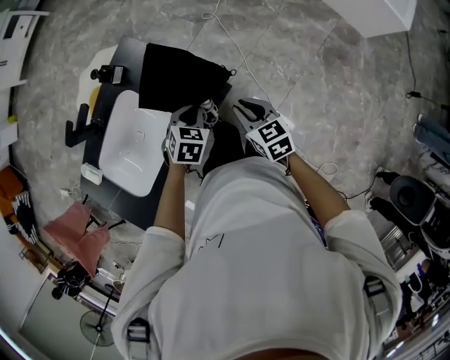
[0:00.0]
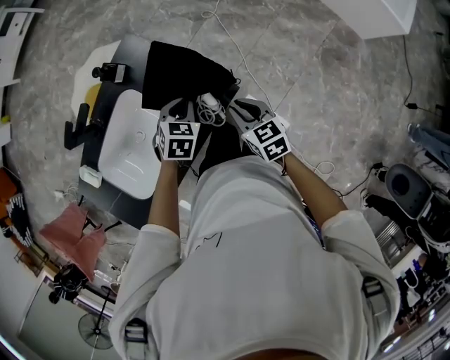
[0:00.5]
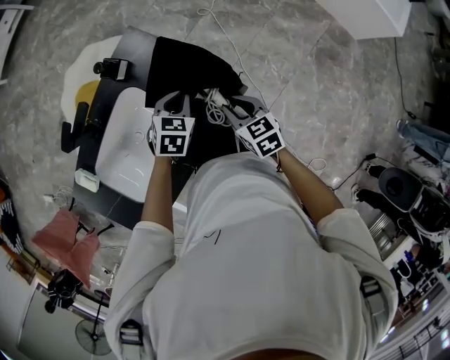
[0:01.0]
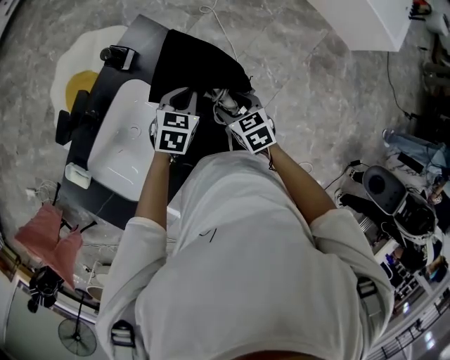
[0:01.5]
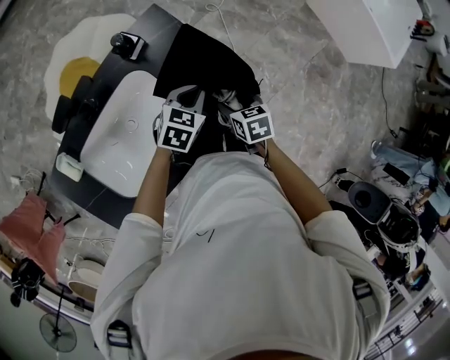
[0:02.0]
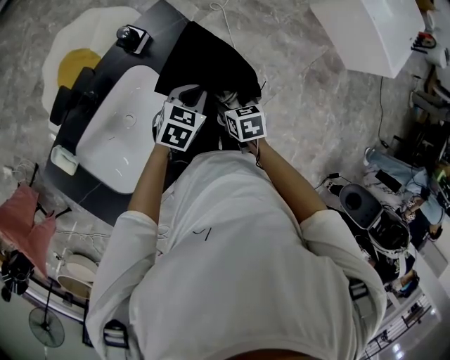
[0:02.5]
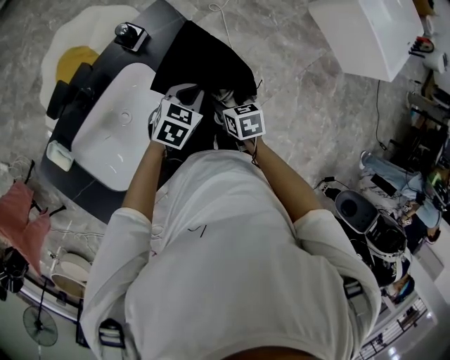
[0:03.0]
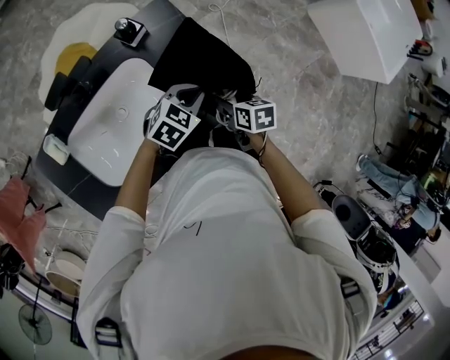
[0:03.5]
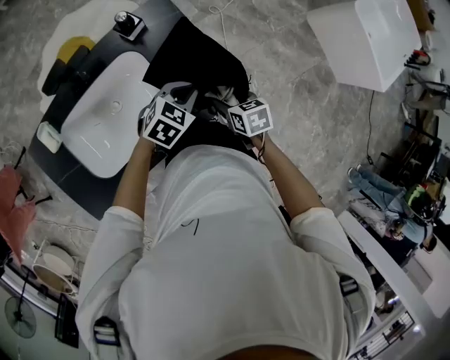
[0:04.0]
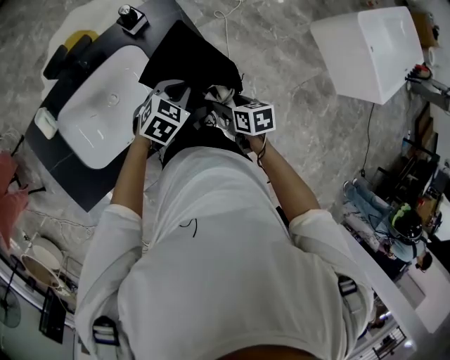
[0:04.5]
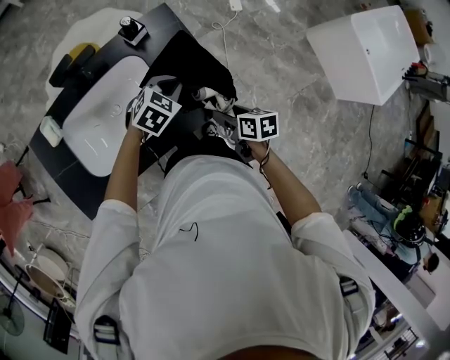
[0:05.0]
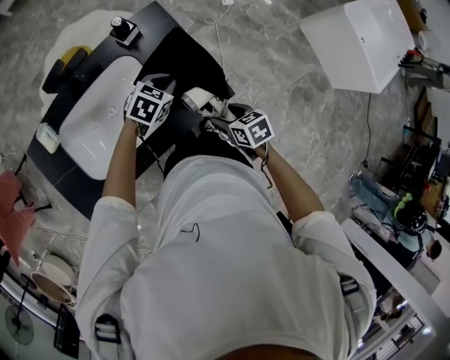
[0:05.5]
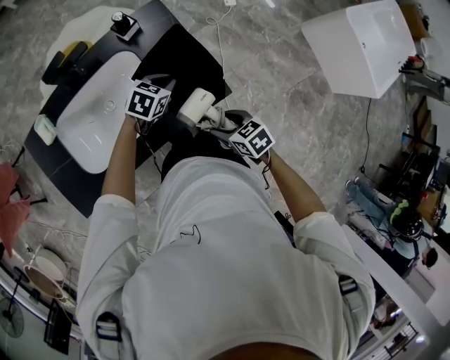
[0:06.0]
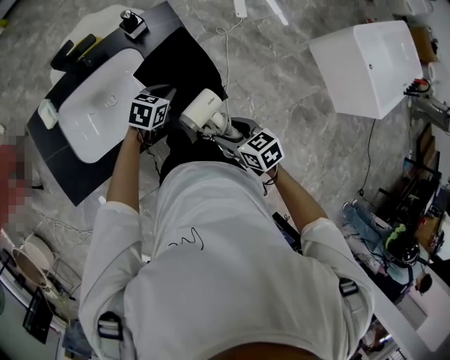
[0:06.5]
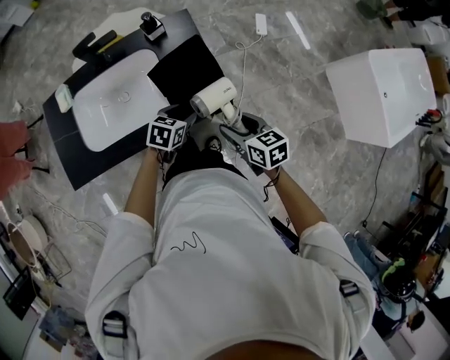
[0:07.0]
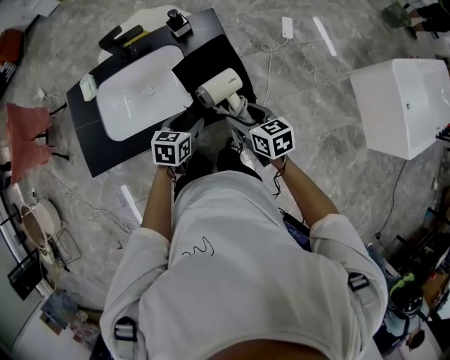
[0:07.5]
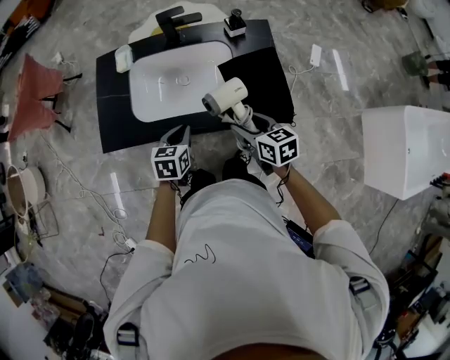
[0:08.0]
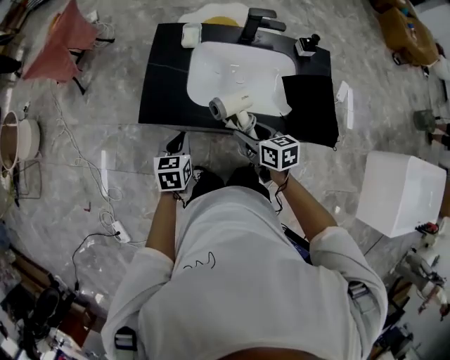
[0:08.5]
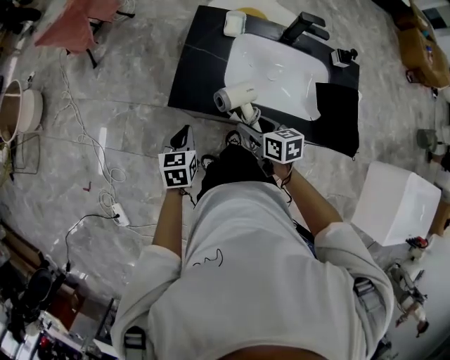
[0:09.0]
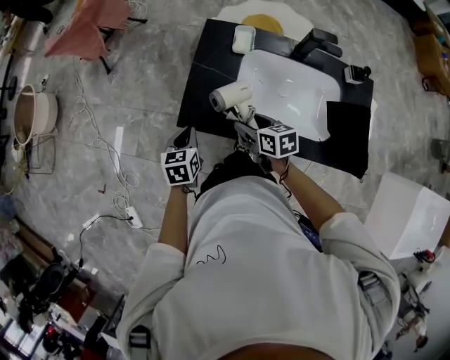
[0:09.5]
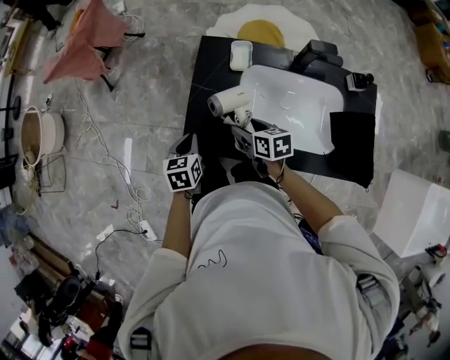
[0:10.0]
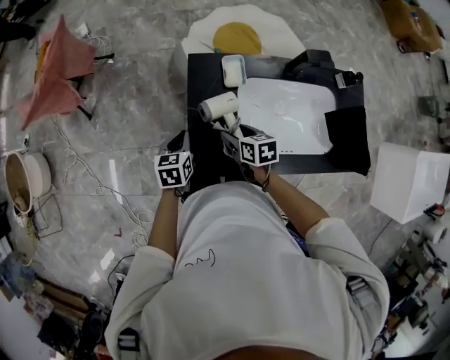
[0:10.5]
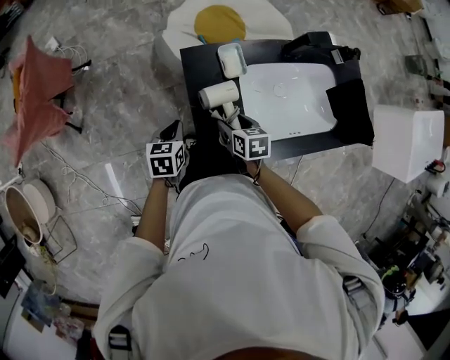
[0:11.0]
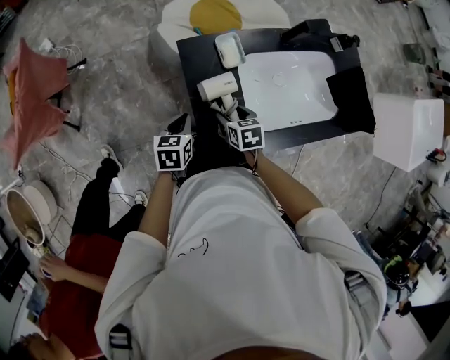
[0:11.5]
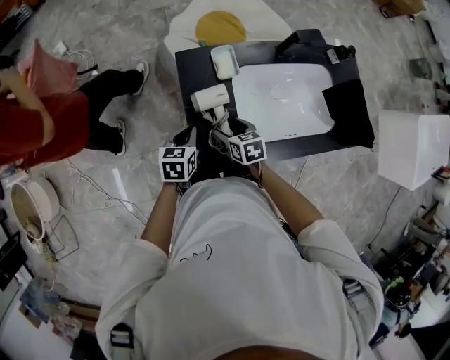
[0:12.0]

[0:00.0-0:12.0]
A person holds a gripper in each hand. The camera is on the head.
0:00.0 to 0:02.0: The right gripper travels to the left, downward and forward by some 15 cm, turns by about 20 degrees, and opens. Meanwhile the left gripper is displaced to the left and forward by approximately 10 cm, and turns by about 20 degrees.
0:02.0 to 0:04.0: The left gripper changes place by approximately 5 cm.
0:04.0 to 0:06.0: The right gripper shifts about 10 cm backward, and changes its angle by roughly 20 degrees.
0:06.0 to 0:08.0: The right gripper shifts by approximately 15 cm, and swivels approximately 20 degrees. Meanwhile the left gripper shifts by approximately 30 cm, turns by roughly 60 degrees, and opens, then closes again.
0:08.0 to 0:10.0: The left gripper moves some 40 cm, and swivels roughly 20 degrees. Meanwhile the right gripper moves approximately 40 cm.
0:10.0 to 0:12.0: The left gripper turns by about 30 degrees. Meanwhile the right gripper changes place by approximately 10 cm, and changes its angle by roughly 20 degrees.

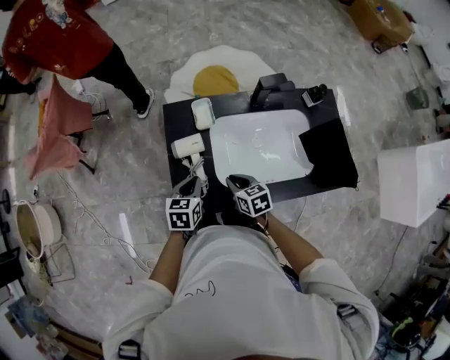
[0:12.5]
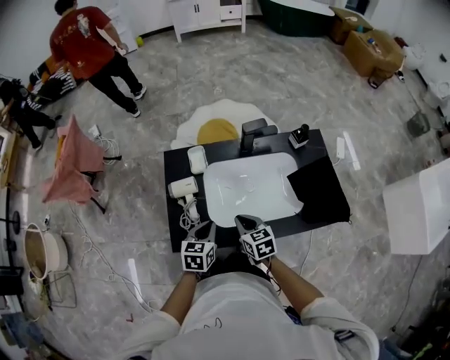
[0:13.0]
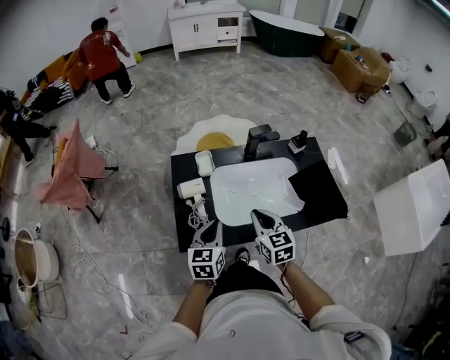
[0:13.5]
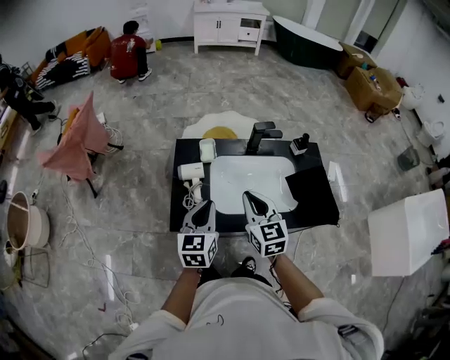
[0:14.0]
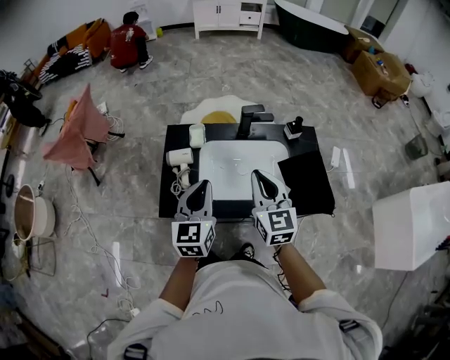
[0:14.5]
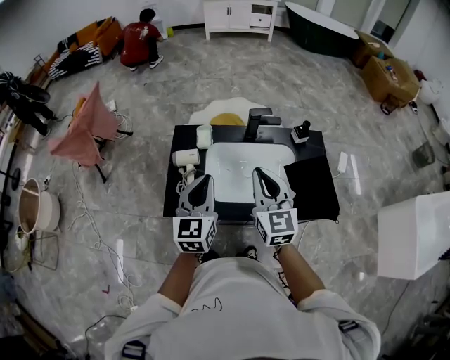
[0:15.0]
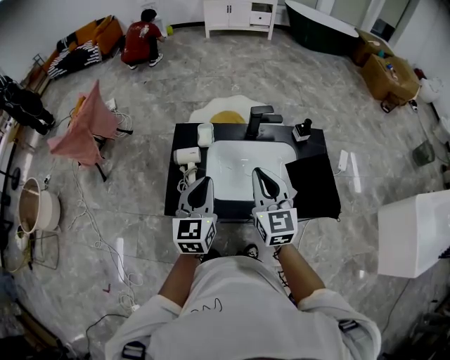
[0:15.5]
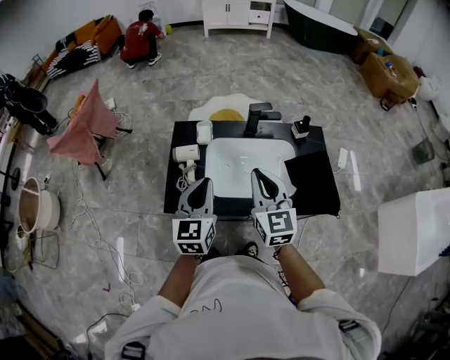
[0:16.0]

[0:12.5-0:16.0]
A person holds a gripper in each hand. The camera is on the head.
0:12.5 to 0:14.5: The grippers both shift upward and to the right by roughly 30 cm. The left gripper angles its fingers upward, by some 30 degrees, while the right gripper angles its fingers upward, by approximately 30 degrees.
0:14.5 to 0:16.0: There are only small adjustments of the grippers.

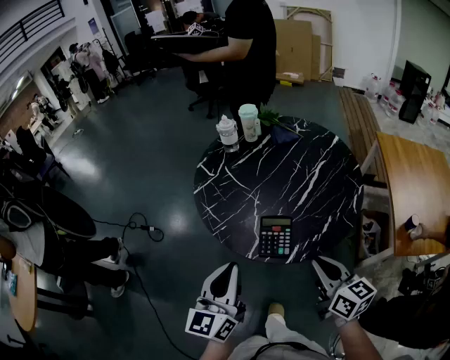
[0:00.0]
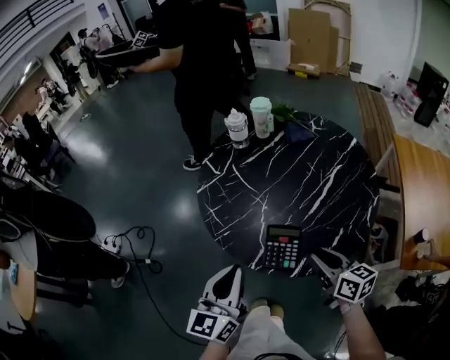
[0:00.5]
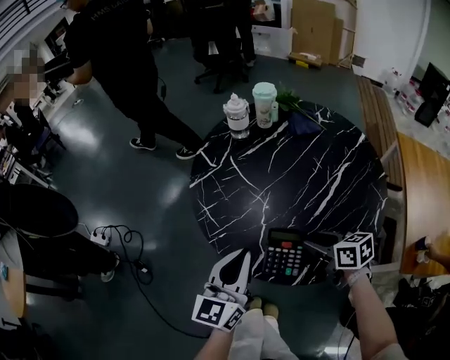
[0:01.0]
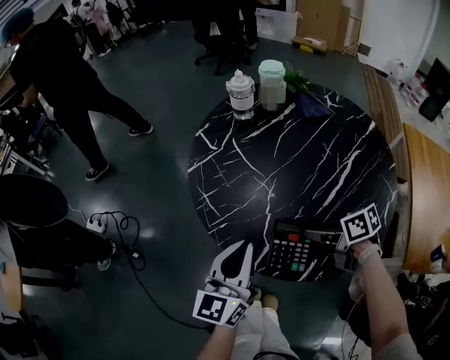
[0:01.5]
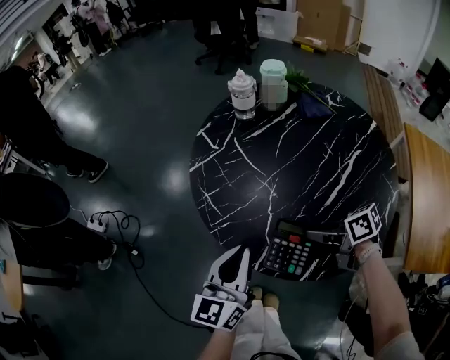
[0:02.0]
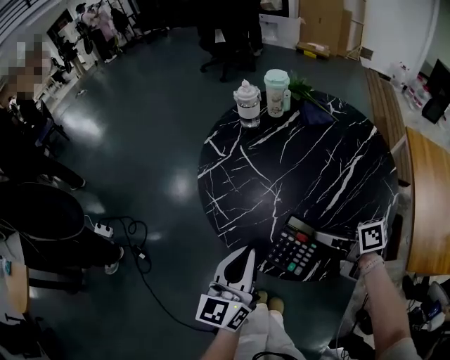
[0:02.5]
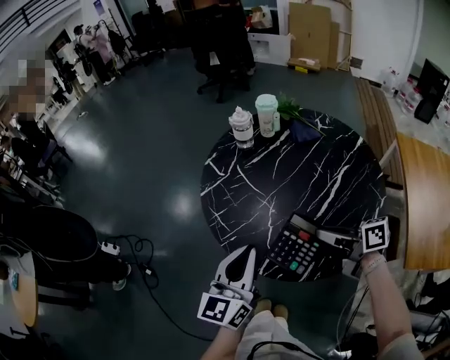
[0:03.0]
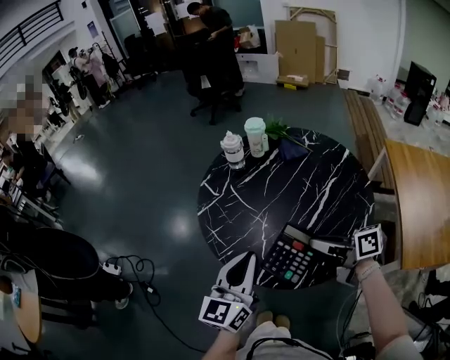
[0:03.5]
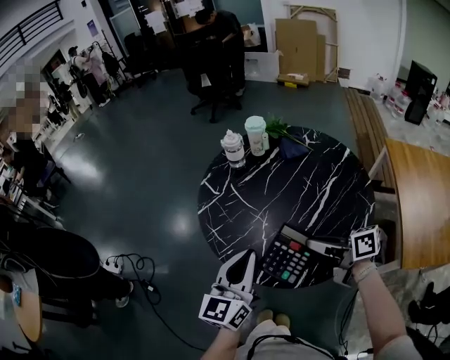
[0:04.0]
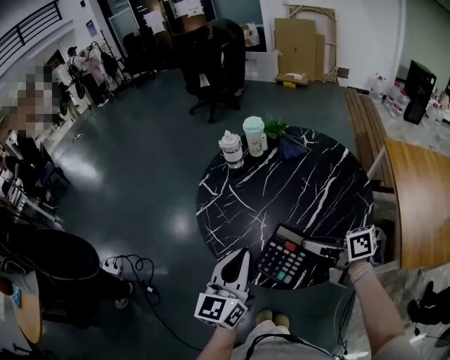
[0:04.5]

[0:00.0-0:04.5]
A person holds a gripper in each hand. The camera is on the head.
0:00.0 to 0:02.0: The left gripper ends up about 15 cm from where it was. The right gripper changes place by about 25 cm, turns by approximately 50 degrees, and opens, then closes once more.
0:02.0 to 0:04.5: The two grippers go some 15 cm upward. The right gripper changes its angle by some 20 degrees.

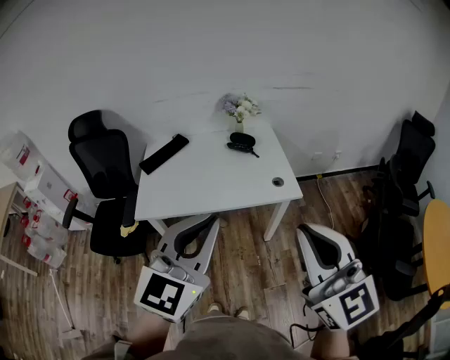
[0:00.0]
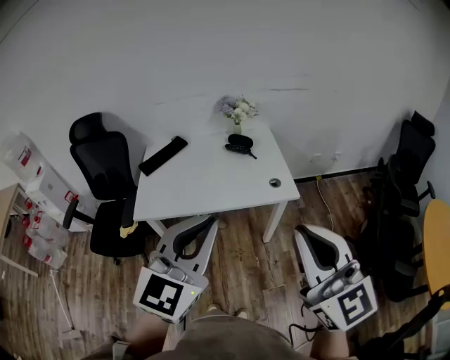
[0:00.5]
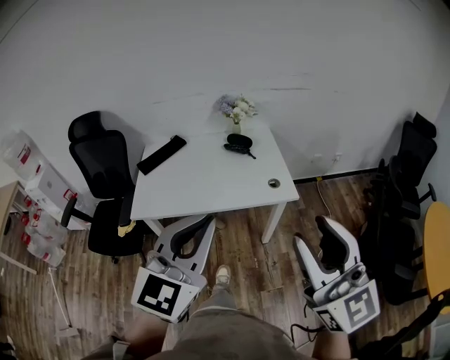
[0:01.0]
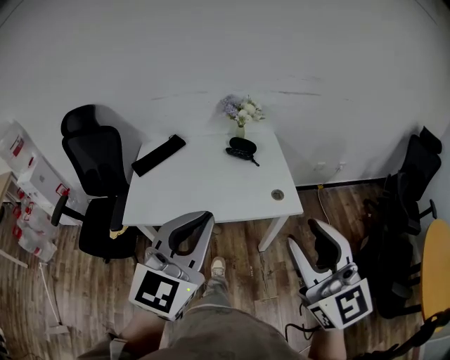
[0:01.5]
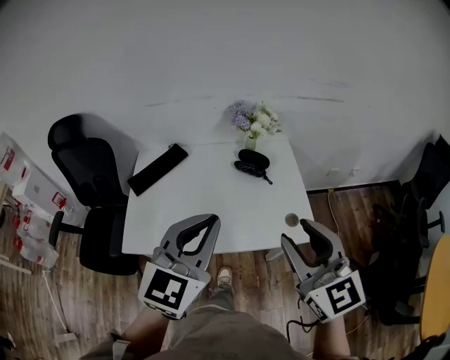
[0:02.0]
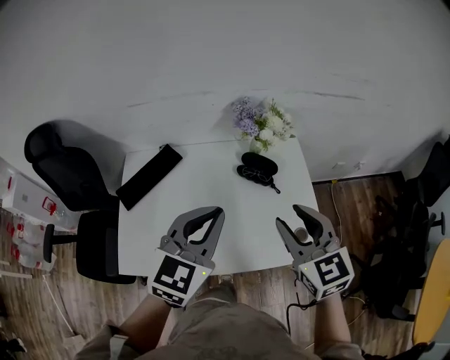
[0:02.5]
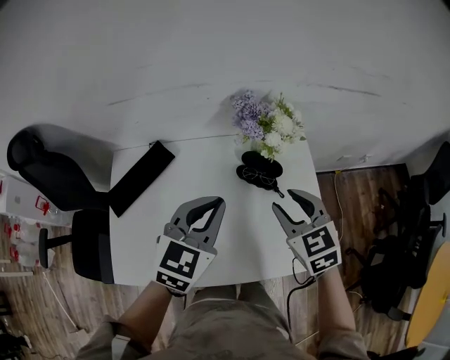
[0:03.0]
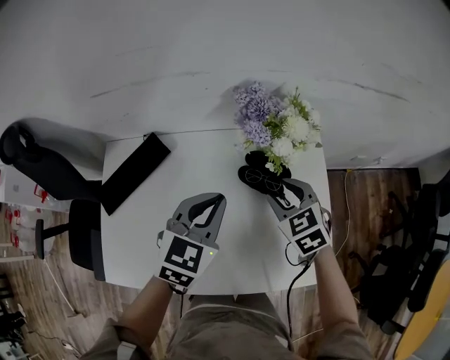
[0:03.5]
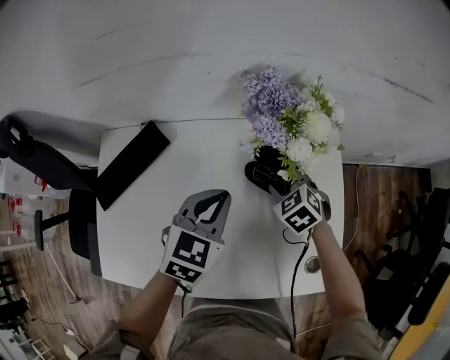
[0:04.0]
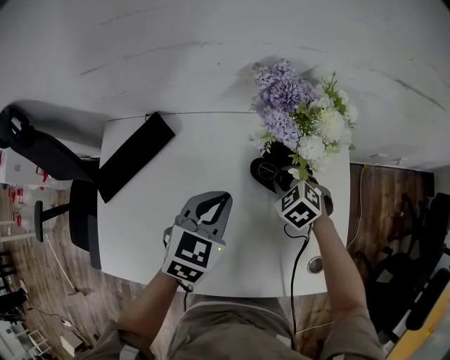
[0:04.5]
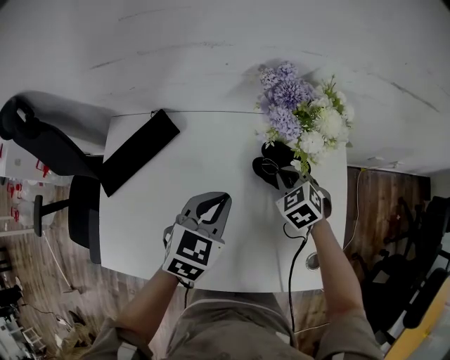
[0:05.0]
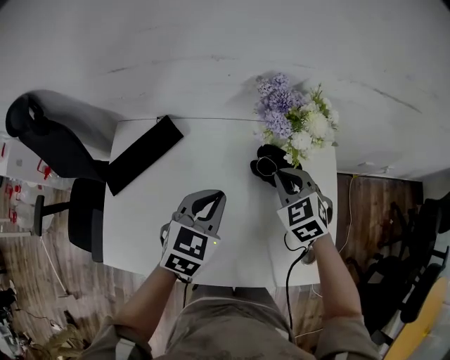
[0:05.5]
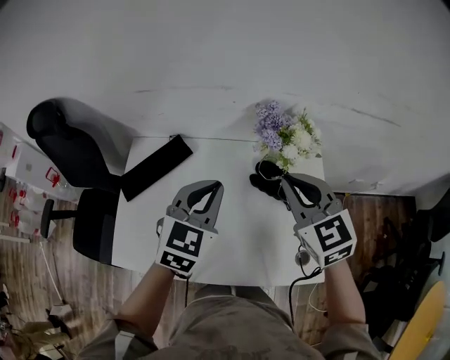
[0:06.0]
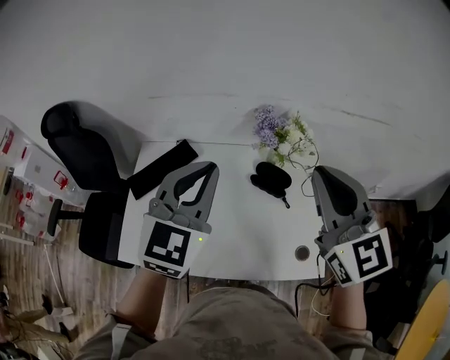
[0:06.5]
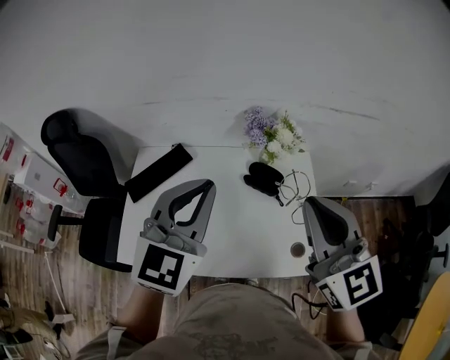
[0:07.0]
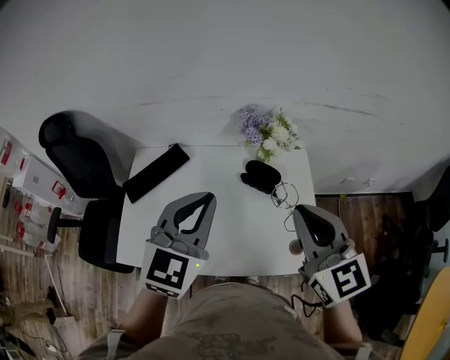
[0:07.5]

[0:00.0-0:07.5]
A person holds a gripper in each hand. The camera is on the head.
0:00.0 to 0:02.0: The two grippers go roughly 25 cm forward. The right gripper opens.
0:02.0 to 0:04.0: Both grippers travel together forward and downward, about 50 cm. The left gripper changes its angle by approximately 30 degrees; the right gripper tips its fingers downward by about 50 degrees.
0:04.0 to 0:05.5: The right gripper moves upward, about 10 cm, and closes. Meanwhile the left gripper changes place by approximately 5 cm.
0:05.5 to 0:07.5: The two grippers go approximately 30 cm upward and backward. The left gripper swivels roughly 30 degrees, while the right gripper tilts its fingers approximately 30 degrees upward.
